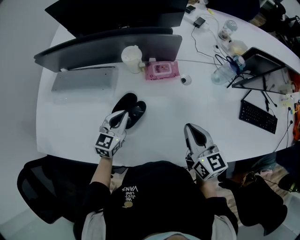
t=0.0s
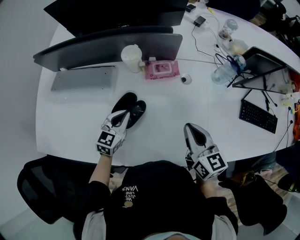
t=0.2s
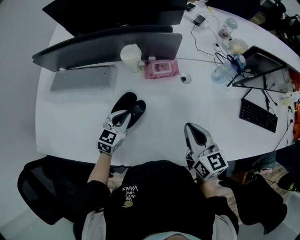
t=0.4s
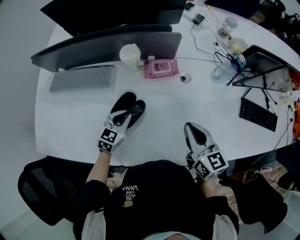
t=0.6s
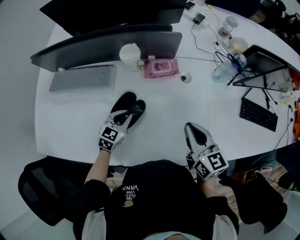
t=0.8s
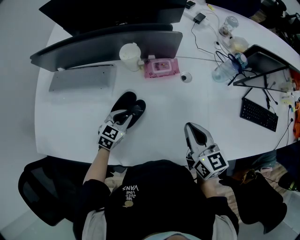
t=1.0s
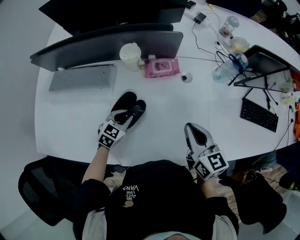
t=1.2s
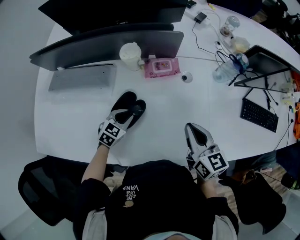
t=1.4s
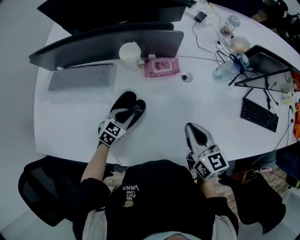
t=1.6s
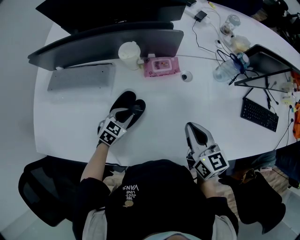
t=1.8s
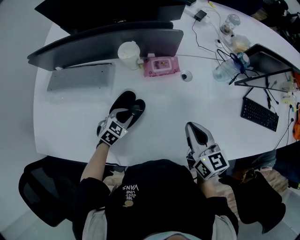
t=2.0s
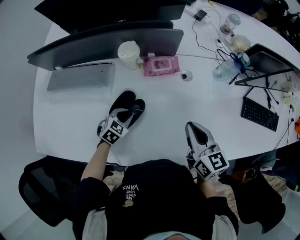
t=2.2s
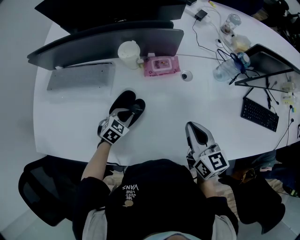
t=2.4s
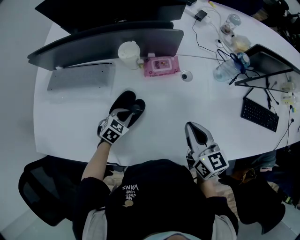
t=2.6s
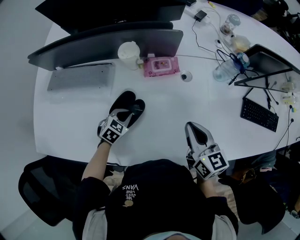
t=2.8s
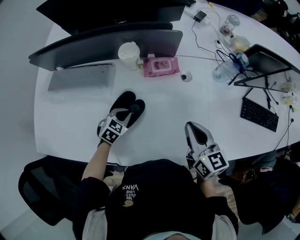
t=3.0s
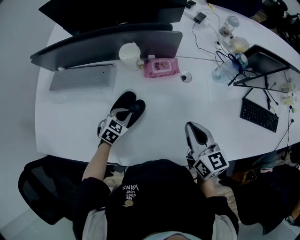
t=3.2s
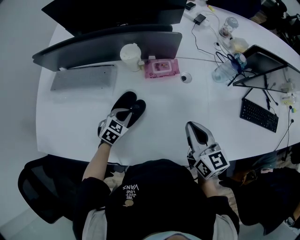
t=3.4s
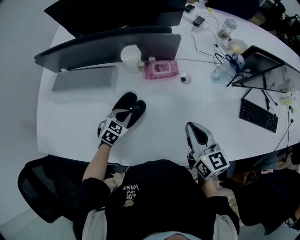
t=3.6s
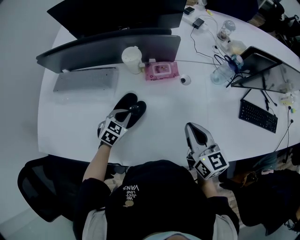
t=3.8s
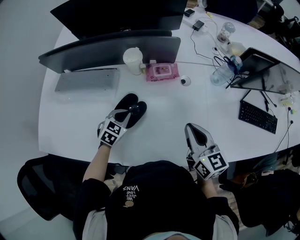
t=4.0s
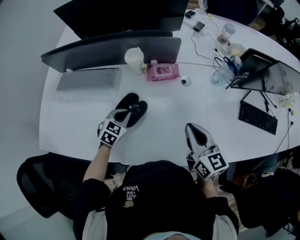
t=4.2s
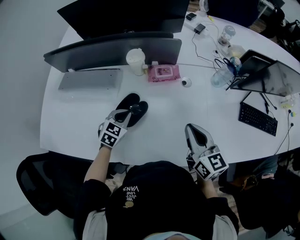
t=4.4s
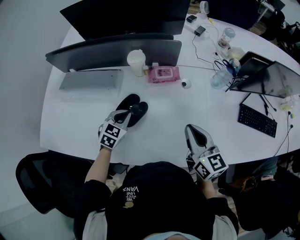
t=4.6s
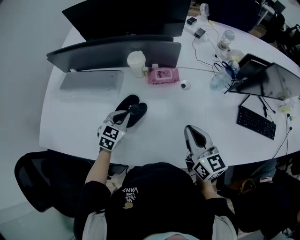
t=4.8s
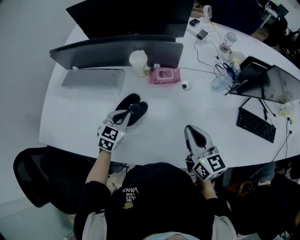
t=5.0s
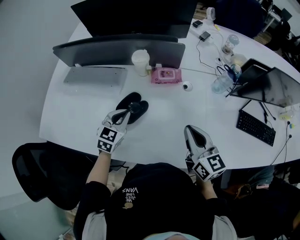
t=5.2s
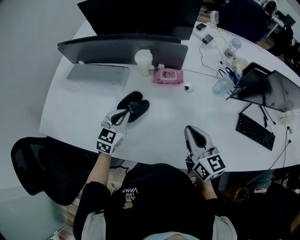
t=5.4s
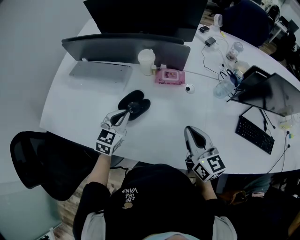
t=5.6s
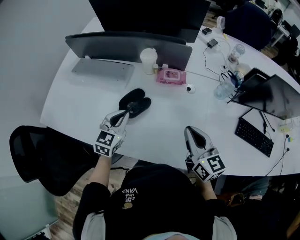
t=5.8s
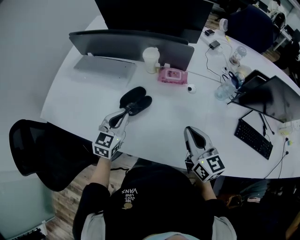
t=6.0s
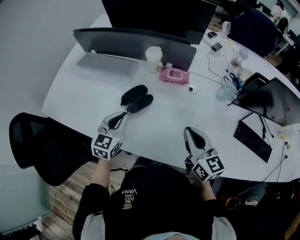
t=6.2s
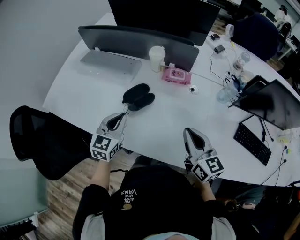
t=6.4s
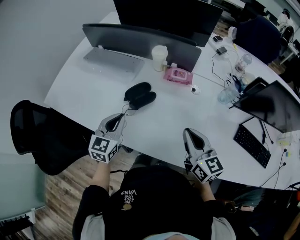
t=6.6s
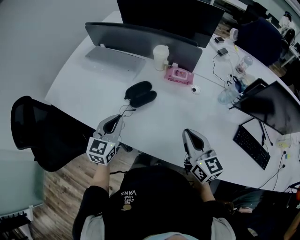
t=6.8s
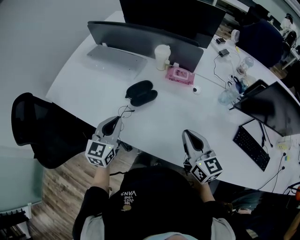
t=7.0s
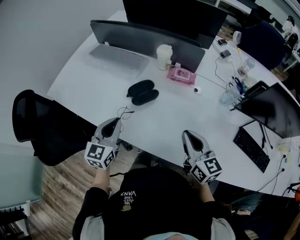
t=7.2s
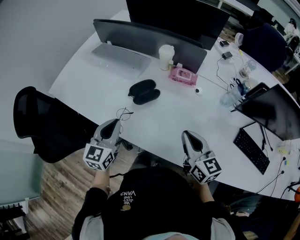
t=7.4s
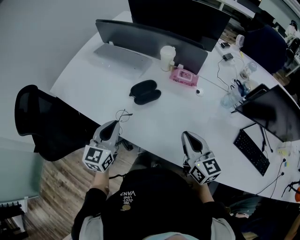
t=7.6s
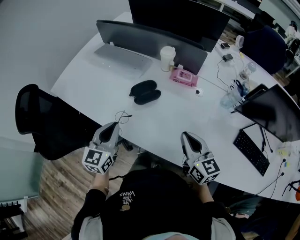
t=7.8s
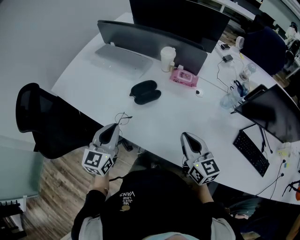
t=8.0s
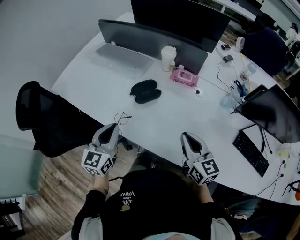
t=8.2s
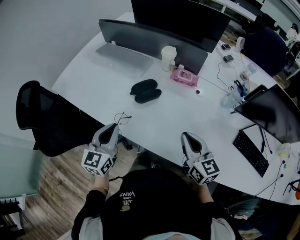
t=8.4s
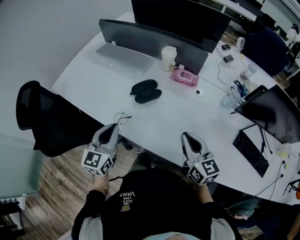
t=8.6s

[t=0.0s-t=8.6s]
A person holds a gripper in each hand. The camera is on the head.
t=0.0s to t=1.4s: The left gripper goes roughly 10 cm downward, and turns by roughly 30 degrees.
t=1.4s to t=2.8s: There are only small adjustments of the grippers.
t=2.8s to t=4.4s: The left gripper travels upward by about 10 cm.
t=4.4s to t=5.8s: The left gripper heads upward and backward, covering approximately 10 cm, and swivels roughly 30 degrees.
t=5.8s to t=7.2s: The left gripper shifts about 15 cm backward, and rotates approximately 20 degrees, while the right gripper goes about 5 cm backward.
t=7.2s to t=8.6s: The left gripper travels backward by roughly 5 cm.

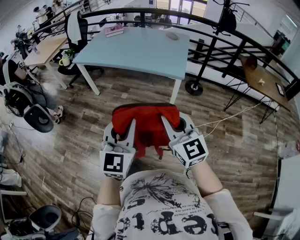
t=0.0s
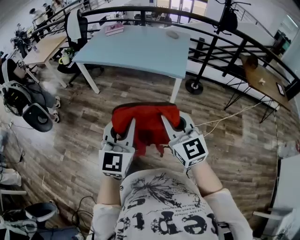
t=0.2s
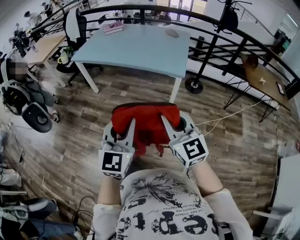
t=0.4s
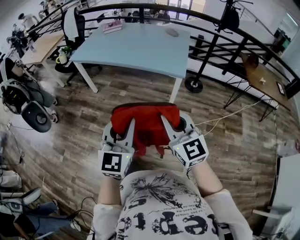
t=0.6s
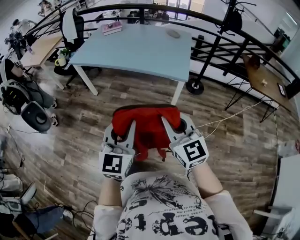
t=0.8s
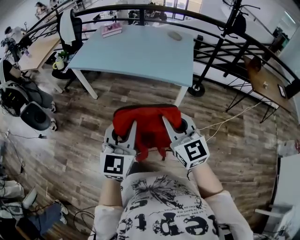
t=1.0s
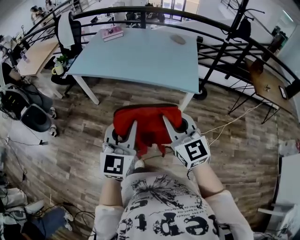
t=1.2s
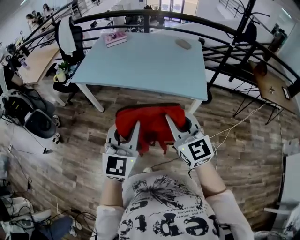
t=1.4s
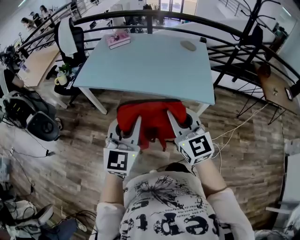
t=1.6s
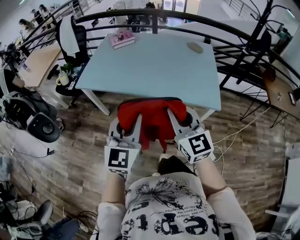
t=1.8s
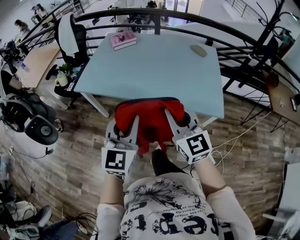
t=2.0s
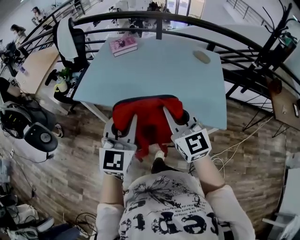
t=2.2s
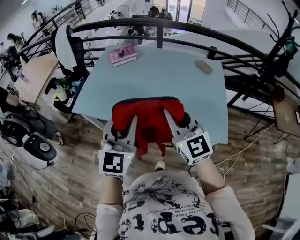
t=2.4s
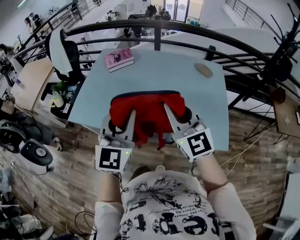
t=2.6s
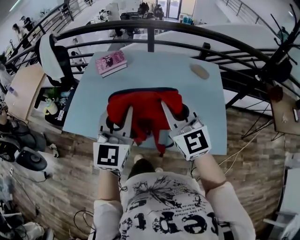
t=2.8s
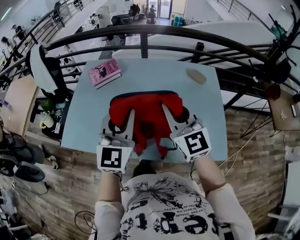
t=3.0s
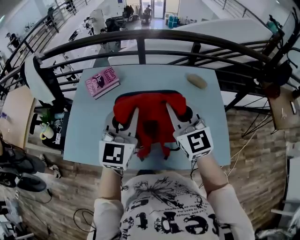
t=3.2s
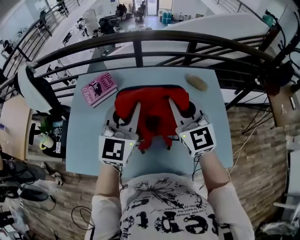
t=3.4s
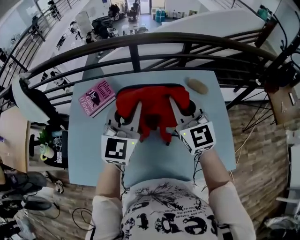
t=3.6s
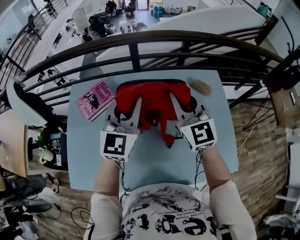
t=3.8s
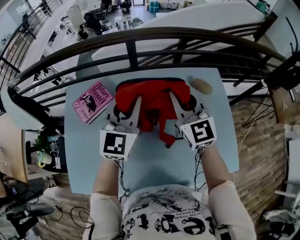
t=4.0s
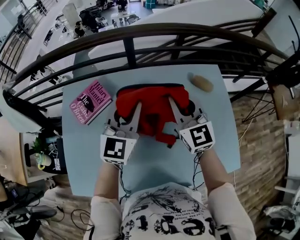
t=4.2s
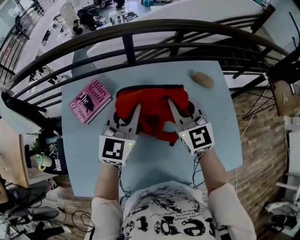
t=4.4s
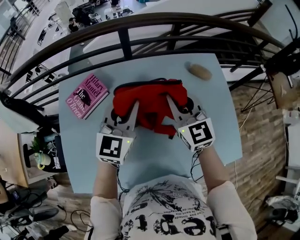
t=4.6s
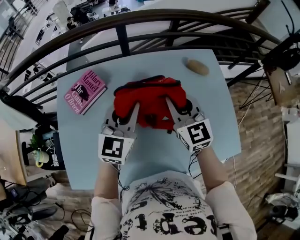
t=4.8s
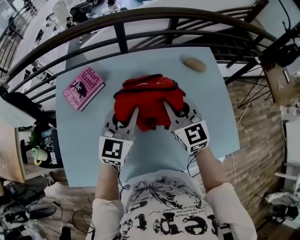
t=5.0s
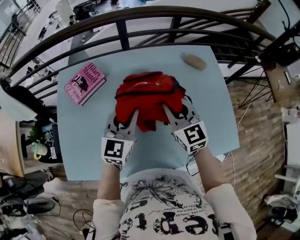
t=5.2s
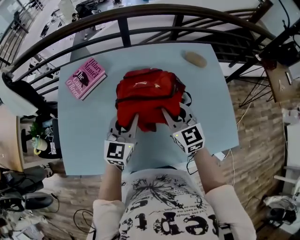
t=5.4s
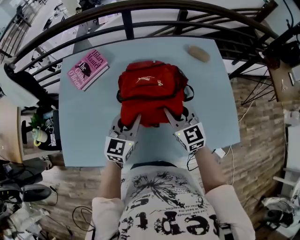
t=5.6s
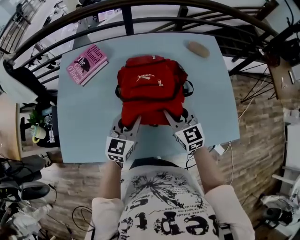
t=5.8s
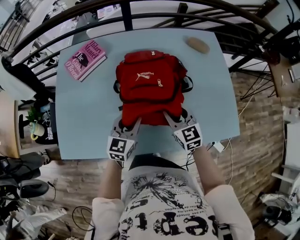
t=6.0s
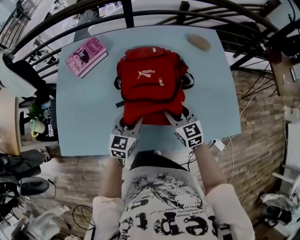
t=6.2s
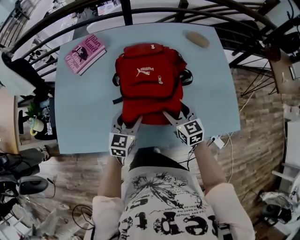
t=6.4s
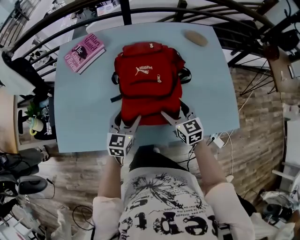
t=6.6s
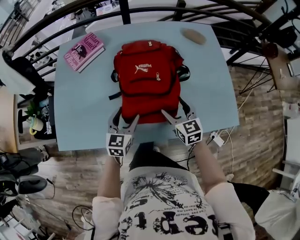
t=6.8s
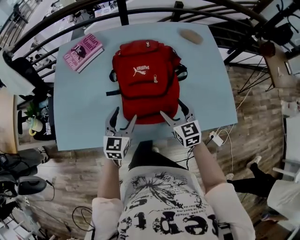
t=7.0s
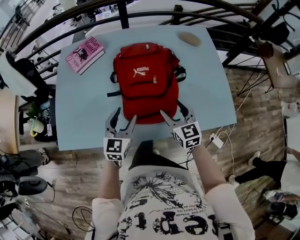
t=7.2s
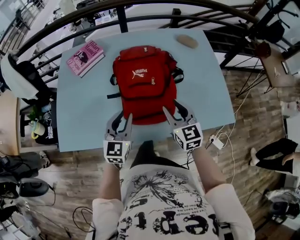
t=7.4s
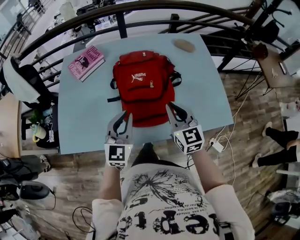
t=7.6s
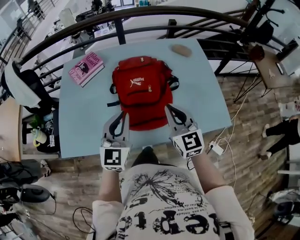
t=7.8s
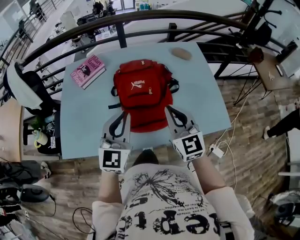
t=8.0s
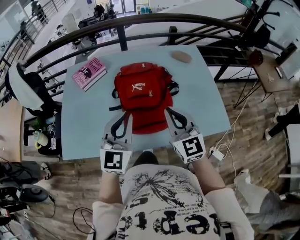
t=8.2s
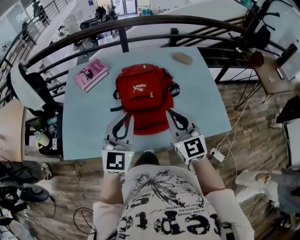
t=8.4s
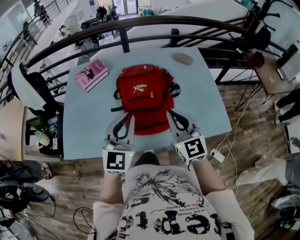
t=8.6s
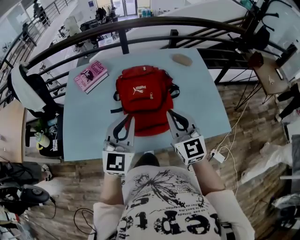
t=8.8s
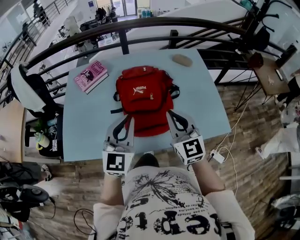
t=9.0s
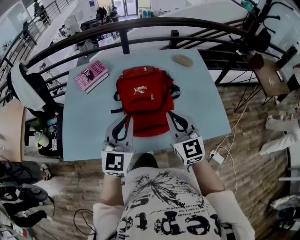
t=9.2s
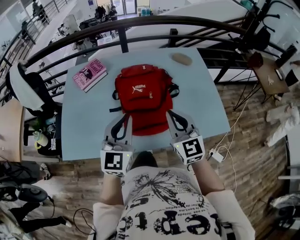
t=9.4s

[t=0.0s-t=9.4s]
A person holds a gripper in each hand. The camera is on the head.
t=0.0s to t=1.6s: Both grippers move forward and to the left, approximately 40 cm.
t=1.6s to t=3.2s: The pair of grippers is taken forward, roughly 60 cm.
t=3.2s to t=4.8s: The grippers both shift forward and downward by roughly 20 cm.
t=4.8s to t=6.2s: Both grippers travel together backward and downward, about 25 cm. The left gripper changes its angle by roughly 20 degrees. Meanwhile the right gripper opens its fingers.
t=6.2s to t=7.8s: Both grippers move upward and backward, some 20 cm. The right gripper changes its angle by approximately 20 degrees, and closes its fingers; the left gripper turns by about 30 degrees, and closes.
t=7.8s to t=9.4s: There are only small adjustments of the grippers.

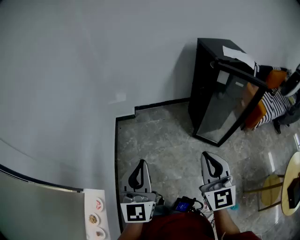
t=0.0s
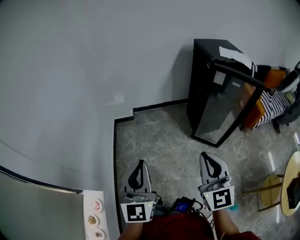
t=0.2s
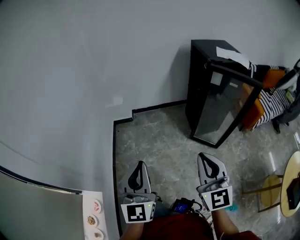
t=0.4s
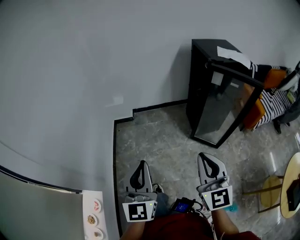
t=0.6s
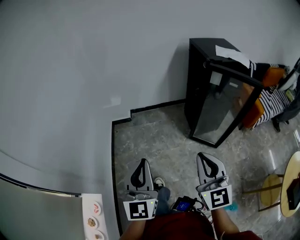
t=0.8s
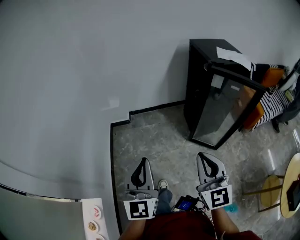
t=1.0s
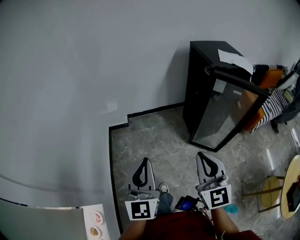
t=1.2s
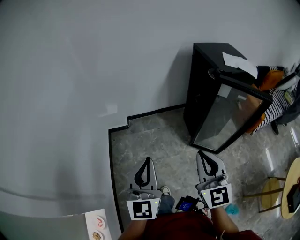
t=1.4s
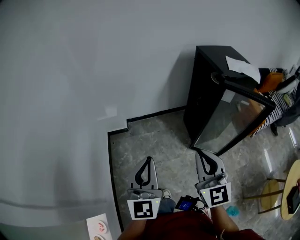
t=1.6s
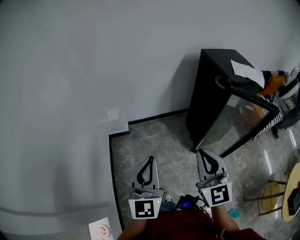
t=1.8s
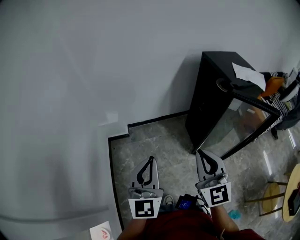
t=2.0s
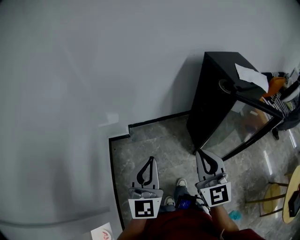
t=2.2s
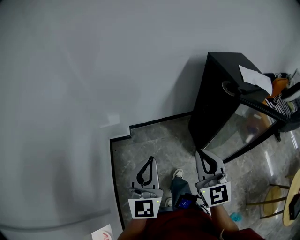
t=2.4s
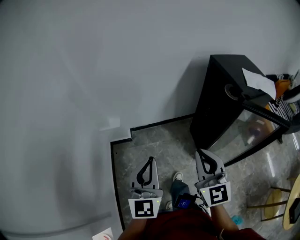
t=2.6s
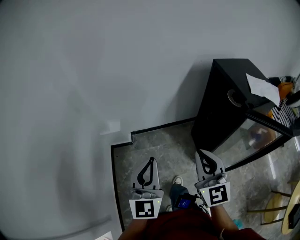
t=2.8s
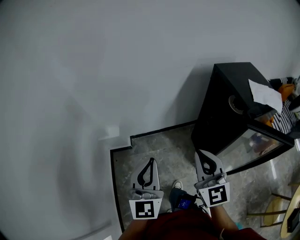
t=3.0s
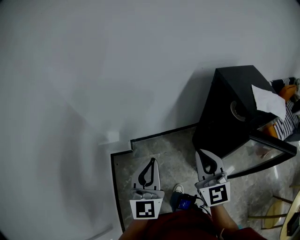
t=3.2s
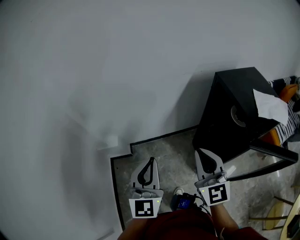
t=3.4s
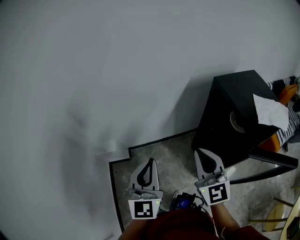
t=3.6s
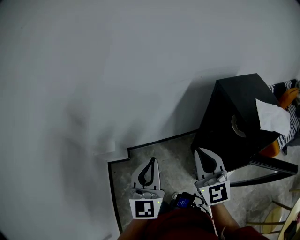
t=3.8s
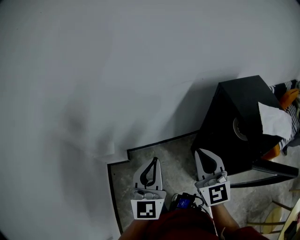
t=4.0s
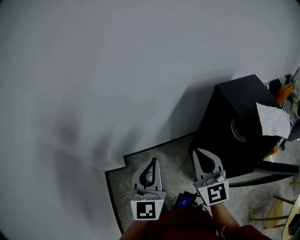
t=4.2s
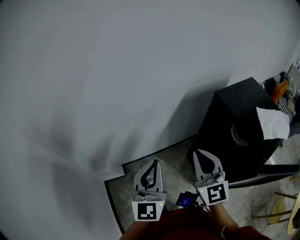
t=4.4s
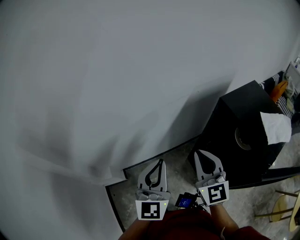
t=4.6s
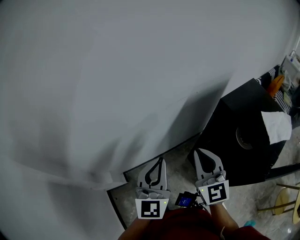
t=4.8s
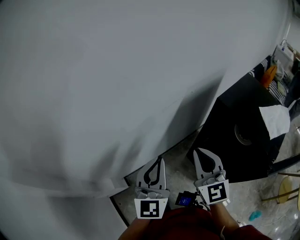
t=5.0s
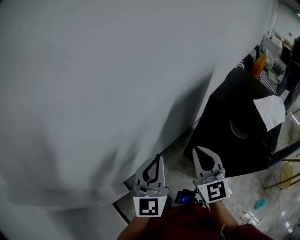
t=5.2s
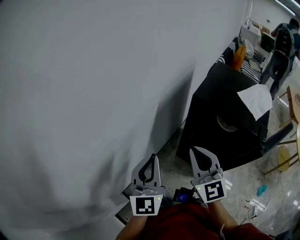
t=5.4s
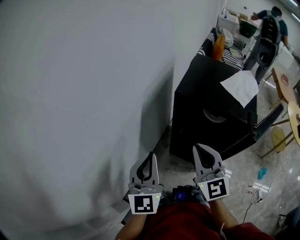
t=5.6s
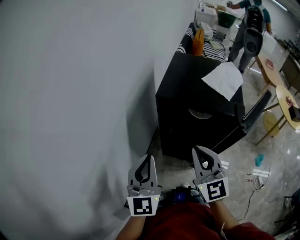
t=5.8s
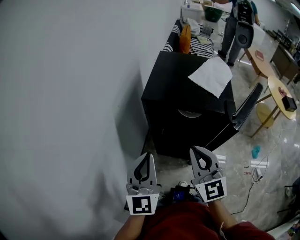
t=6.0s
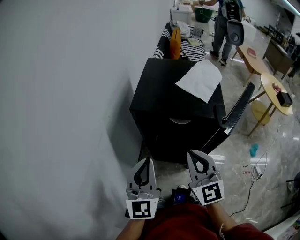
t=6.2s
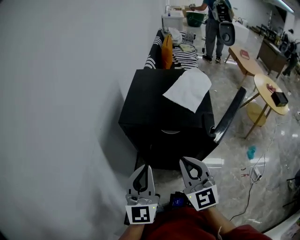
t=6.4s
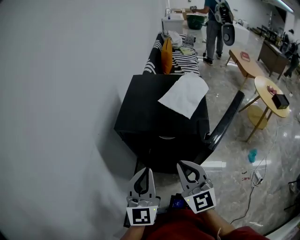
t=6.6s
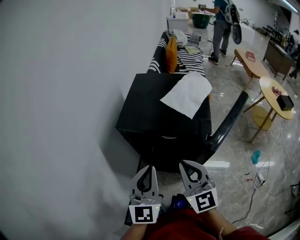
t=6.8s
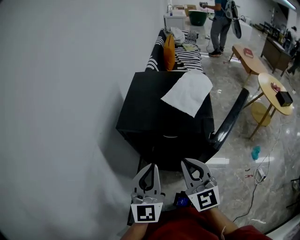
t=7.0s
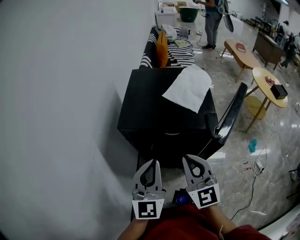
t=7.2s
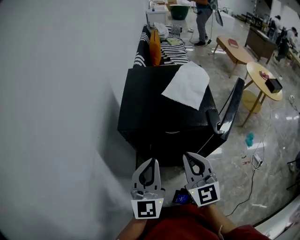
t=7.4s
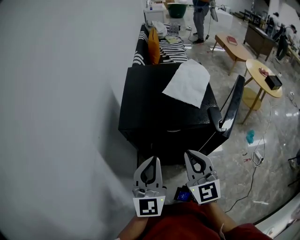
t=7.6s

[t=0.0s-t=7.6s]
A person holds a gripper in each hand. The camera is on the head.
t=0.0s to t=1.6s: The two grippers go roughly 20 cm forward.
t=1.6s to t=3.0s: The two grippers go some 25 cm forward.
t=3.0s to t=4.6s: The grippers both shift forward by approximately 30 cm.
t=4.6s to t=6.0s: The left gripper ends up some 15 cm from where it was, and changes its angle by about 40 degrees. Meanwhile the right gripper changes place by approximately 10 cm, and rotates some 50 degrees.
t=6.0s to t=7.6s: The right gripper is displaced forward by roughly 5 cm. Meanwhile the left gripper shifts about 10 cm forward and to the right.
